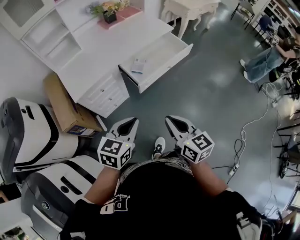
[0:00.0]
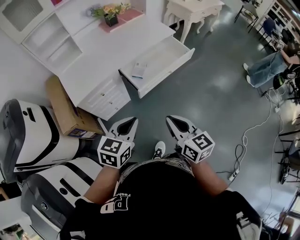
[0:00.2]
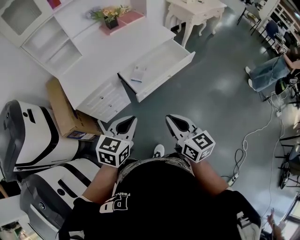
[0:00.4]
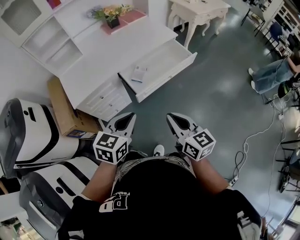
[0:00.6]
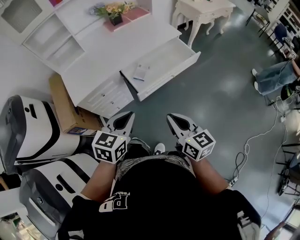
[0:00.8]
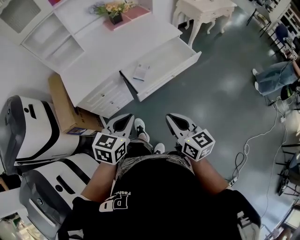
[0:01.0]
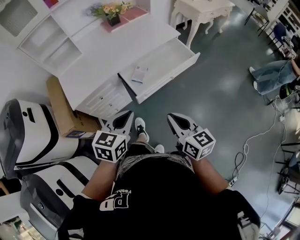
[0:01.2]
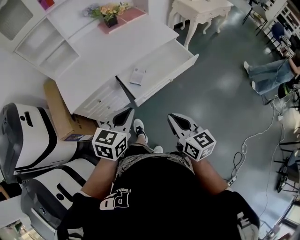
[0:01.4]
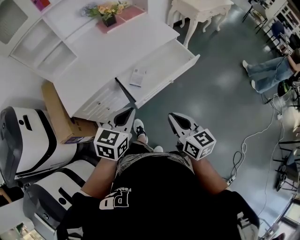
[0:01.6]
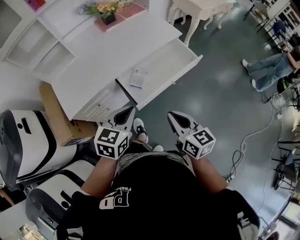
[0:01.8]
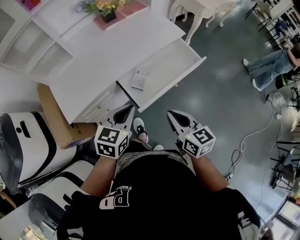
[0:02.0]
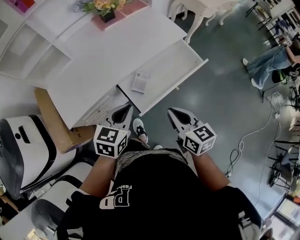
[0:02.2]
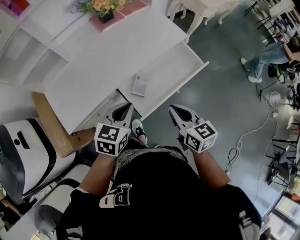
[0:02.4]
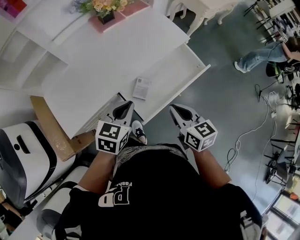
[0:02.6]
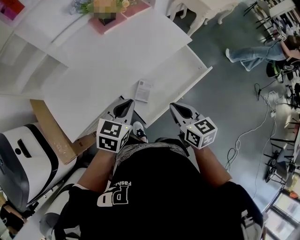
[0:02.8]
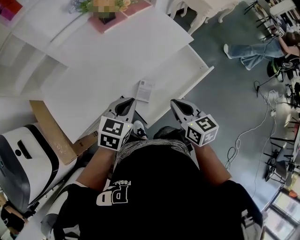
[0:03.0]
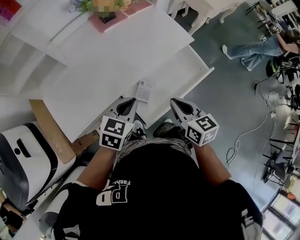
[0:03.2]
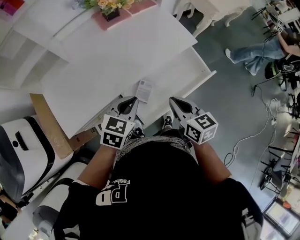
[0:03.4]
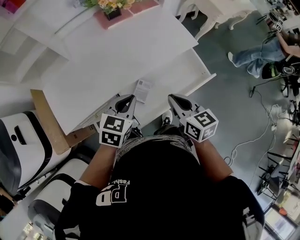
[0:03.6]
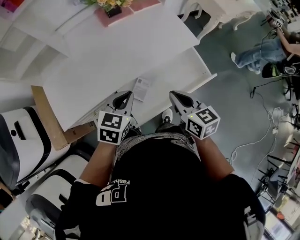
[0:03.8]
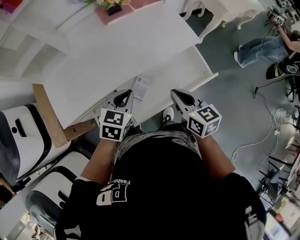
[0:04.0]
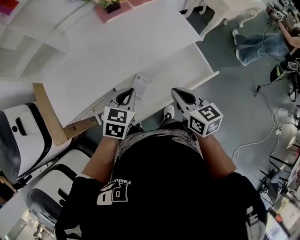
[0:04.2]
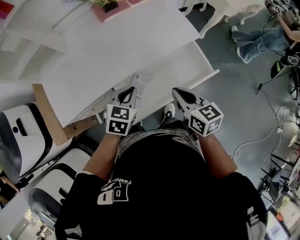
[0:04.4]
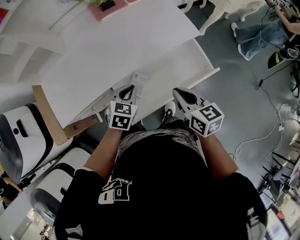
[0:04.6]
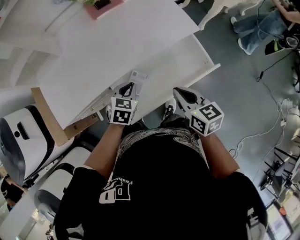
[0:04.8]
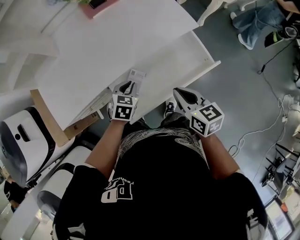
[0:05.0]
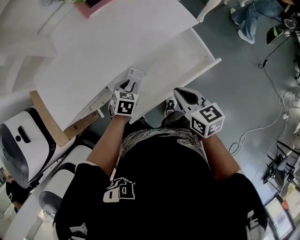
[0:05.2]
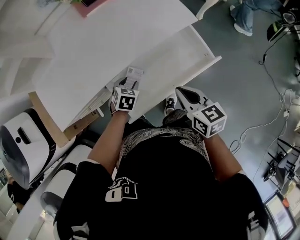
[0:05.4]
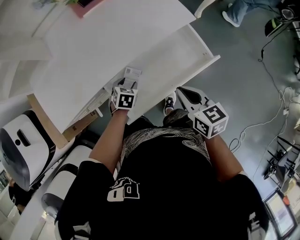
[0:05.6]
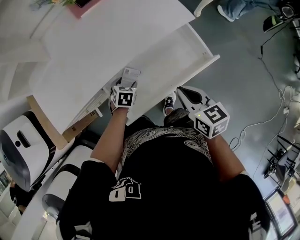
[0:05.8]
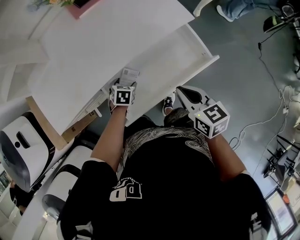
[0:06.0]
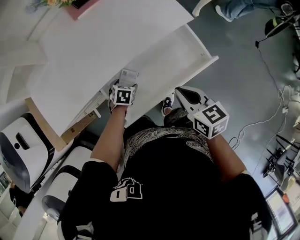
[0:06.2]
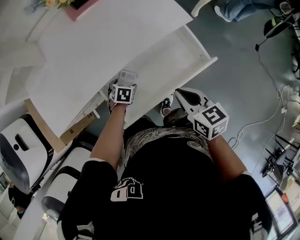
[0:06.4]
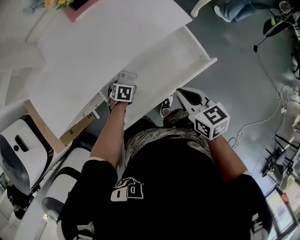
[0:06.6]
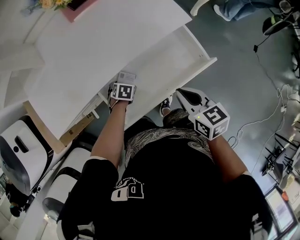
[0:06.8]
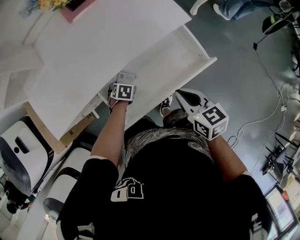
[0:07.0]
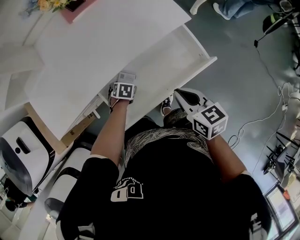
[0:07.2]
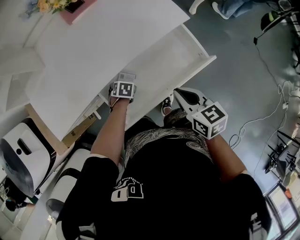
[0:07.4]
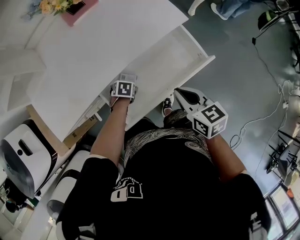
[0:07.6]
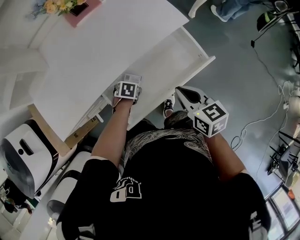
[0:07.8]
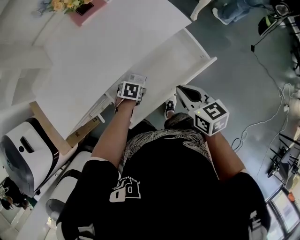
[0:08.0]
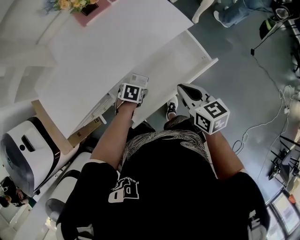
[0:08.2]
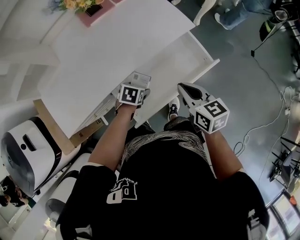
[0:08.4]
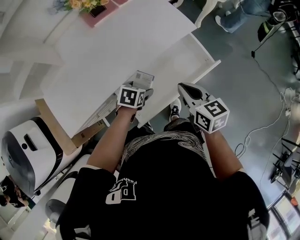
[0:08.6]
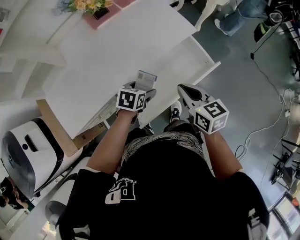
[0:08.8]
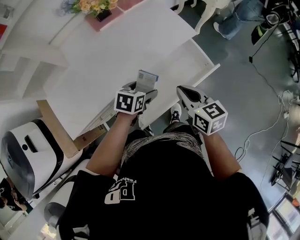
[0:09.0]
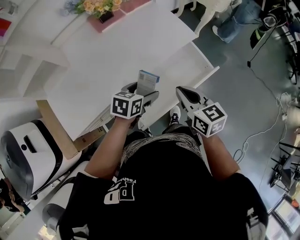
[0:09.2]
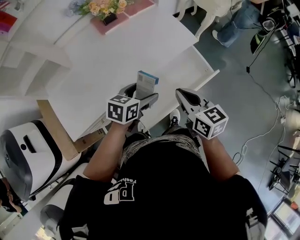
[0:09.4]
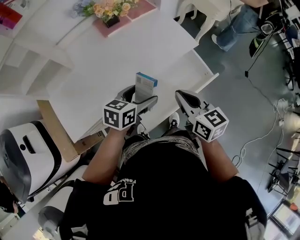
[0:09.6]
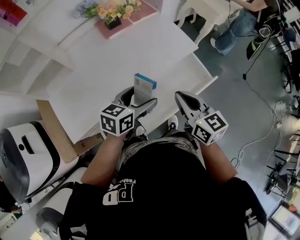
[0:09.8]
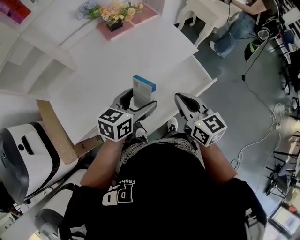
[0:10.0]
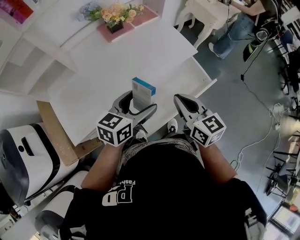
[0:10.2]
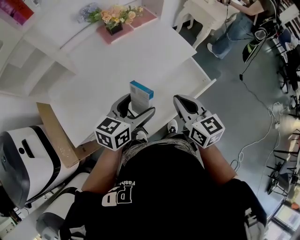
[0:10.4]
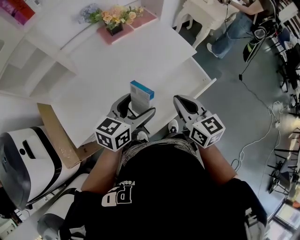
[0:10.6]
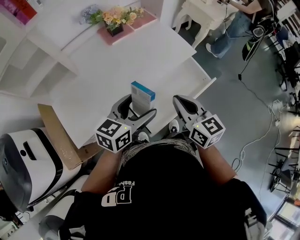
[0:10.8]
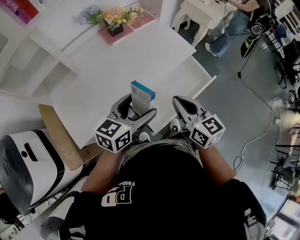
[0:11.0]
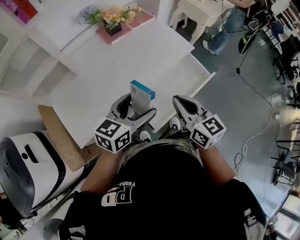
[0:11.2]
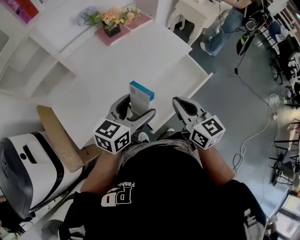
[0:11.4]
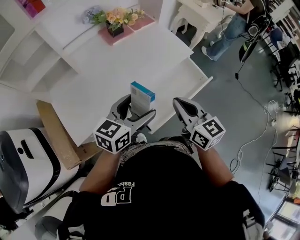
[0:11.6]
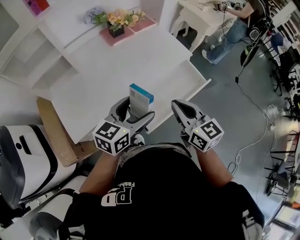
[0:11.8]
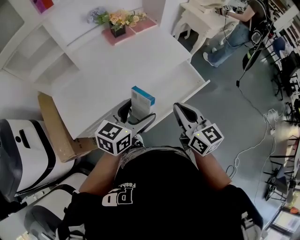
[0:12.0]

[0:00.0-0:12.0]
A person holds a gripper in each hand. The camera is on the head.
0:00.0 to 0:01.6: The right gripper goes approximately 20 cm forward and to the right. The left gripper goes approximately 20 cm forward.
0:01.6 to 0:03.0: The grippers both shift forward by about 25 cm.
0:03.0 to 0:04.4: The left gripper goes some 10 cm to the right and downward. The right gripper goes some 10 cm to the right and forward.
0:04.4 to 0:06.0: The right gripper travels to the right and downward by approximately 10 cm. The left gripper is displaced downward by about 25 cm, changes its angle by about 30 degrees, and opens its fingers.
0:06.0 to 0:07.6: The grippers stay close to where they were, moving slightly.
0:07.6 to 0:09.0: The left gripper heads upward, covering roughly 20 cm, and angles its fingers upward, by some 30 degrees, while the right gripper shifts by approximately 10 cm.
0:09.0 to 0:10.4: The right gripper is displaced upward and to the left by about 10 cm, while the left gripper heads upward, covering approximately 15 cm, and points its fingers roughly 30 degrees further upward.
0:10.4 to 0:12.0: Both grippers move backward, approximately 10 cm.

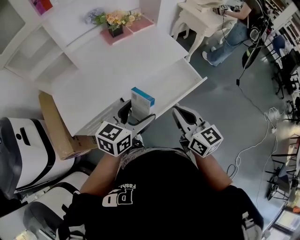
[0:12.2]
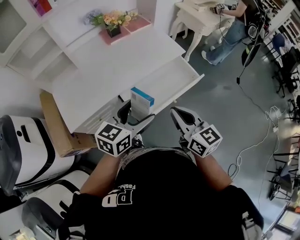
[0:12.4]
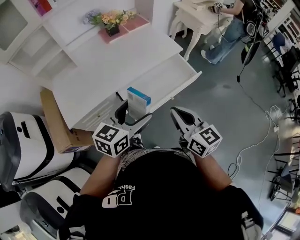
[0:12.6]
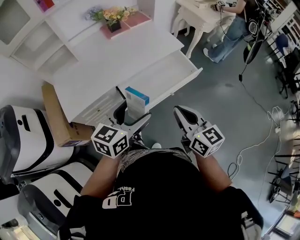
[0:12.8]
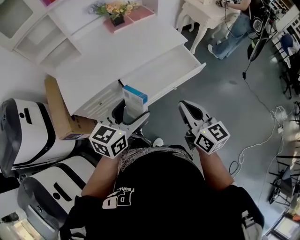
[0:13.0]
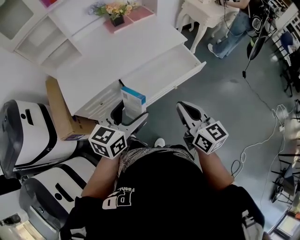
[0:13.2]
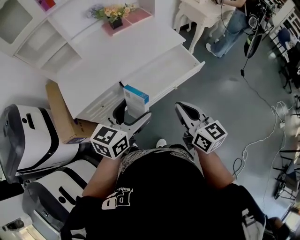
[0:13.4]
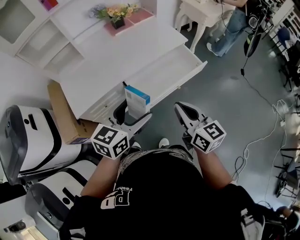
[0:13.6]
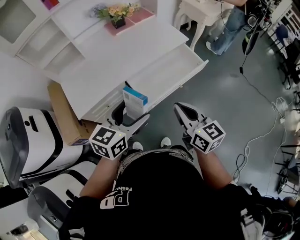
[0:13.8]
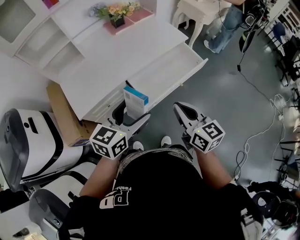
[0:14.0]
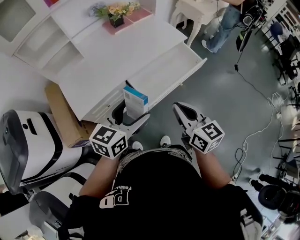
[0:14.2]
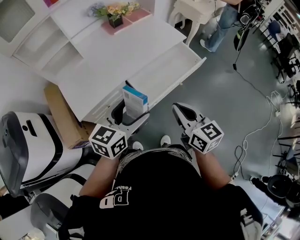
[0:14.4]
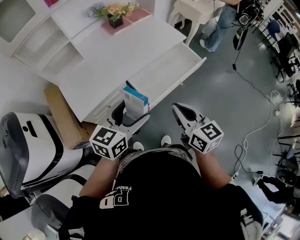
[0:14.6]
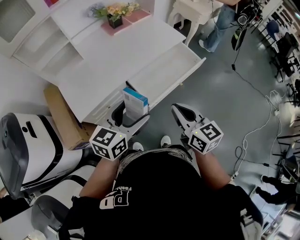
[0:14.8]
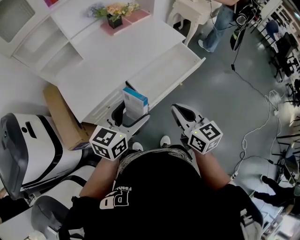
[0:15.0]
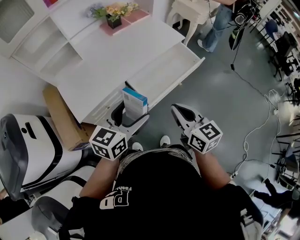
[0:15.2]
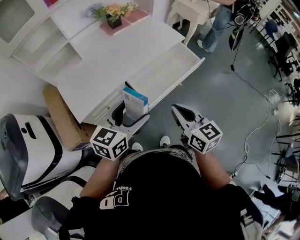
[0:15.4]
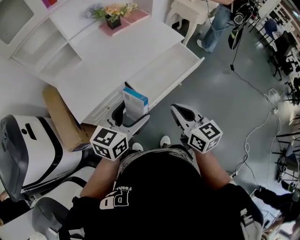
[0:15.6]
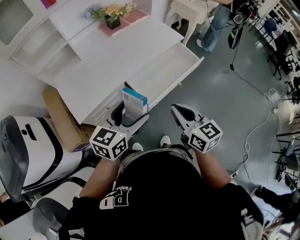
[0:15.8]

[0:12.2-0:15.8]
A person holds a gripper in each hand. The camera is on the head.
0:12.2 to 0:14.0: Both grippers travel together backward, roughly 10 cm.
0:14.0 to 0:15.8: There are only small adjustments of the grippers.

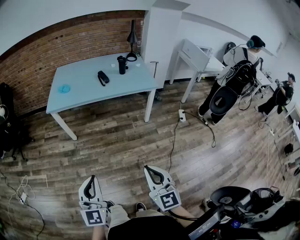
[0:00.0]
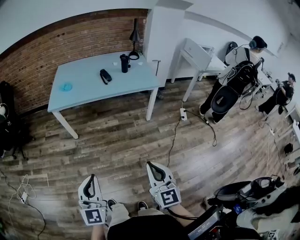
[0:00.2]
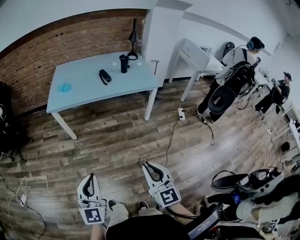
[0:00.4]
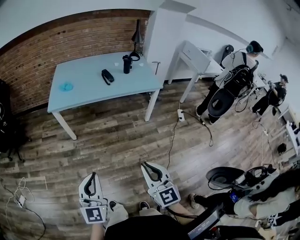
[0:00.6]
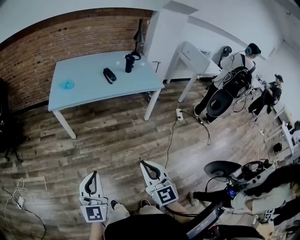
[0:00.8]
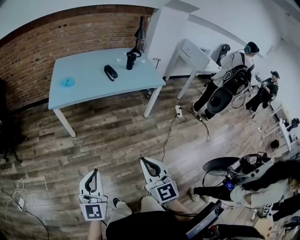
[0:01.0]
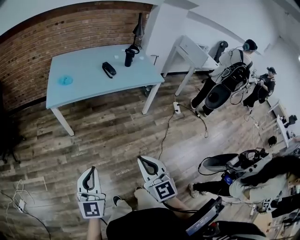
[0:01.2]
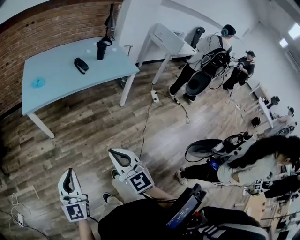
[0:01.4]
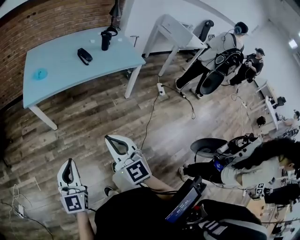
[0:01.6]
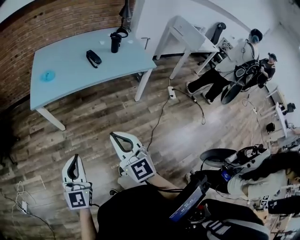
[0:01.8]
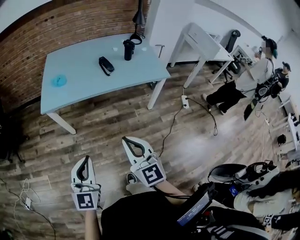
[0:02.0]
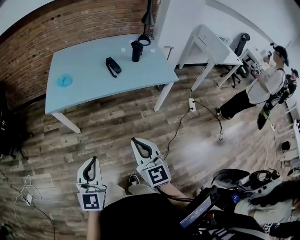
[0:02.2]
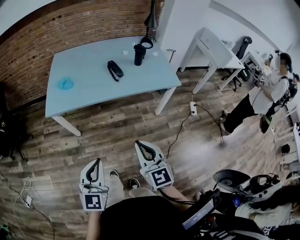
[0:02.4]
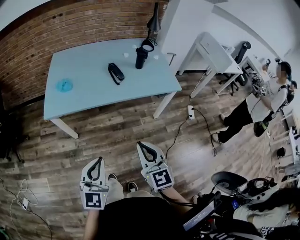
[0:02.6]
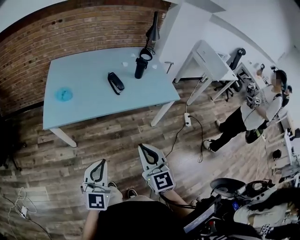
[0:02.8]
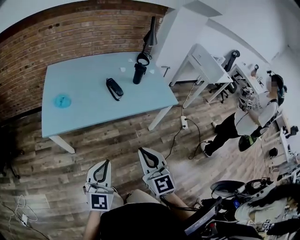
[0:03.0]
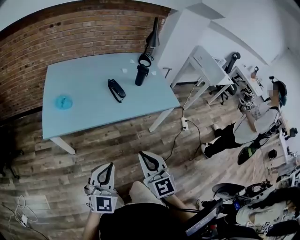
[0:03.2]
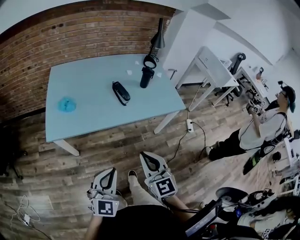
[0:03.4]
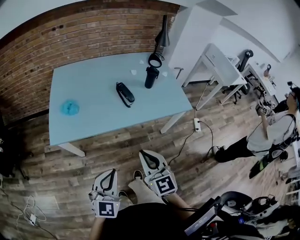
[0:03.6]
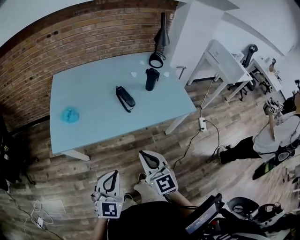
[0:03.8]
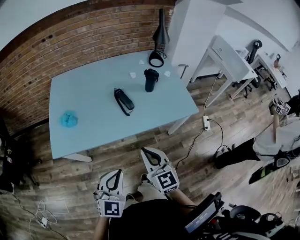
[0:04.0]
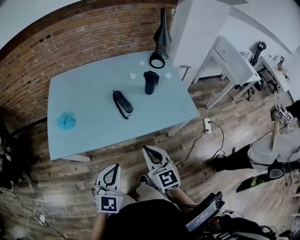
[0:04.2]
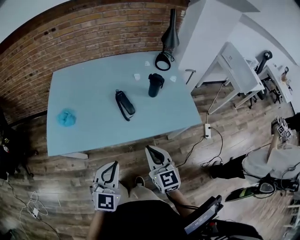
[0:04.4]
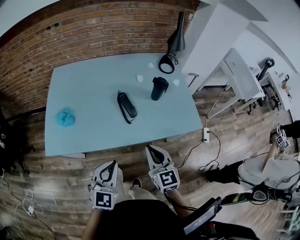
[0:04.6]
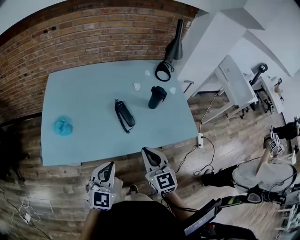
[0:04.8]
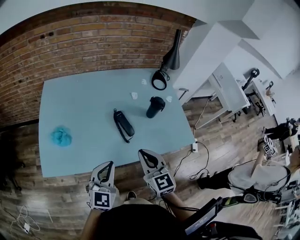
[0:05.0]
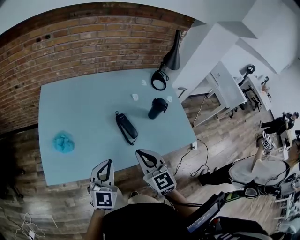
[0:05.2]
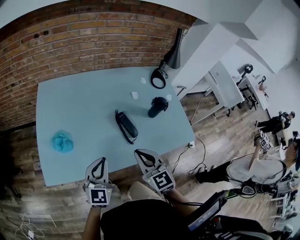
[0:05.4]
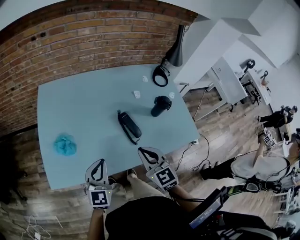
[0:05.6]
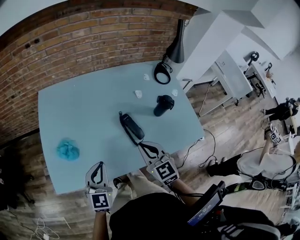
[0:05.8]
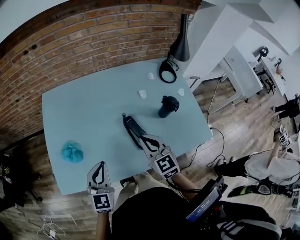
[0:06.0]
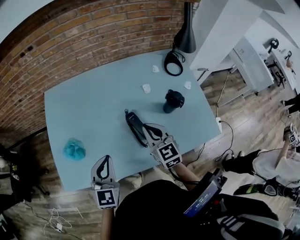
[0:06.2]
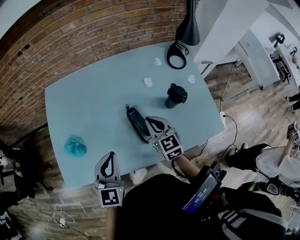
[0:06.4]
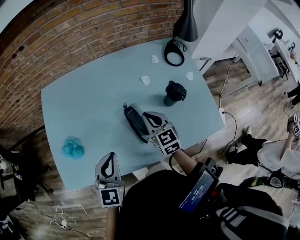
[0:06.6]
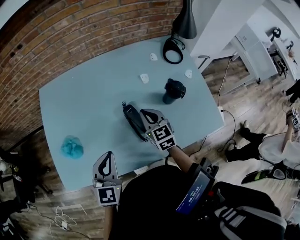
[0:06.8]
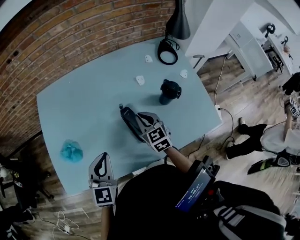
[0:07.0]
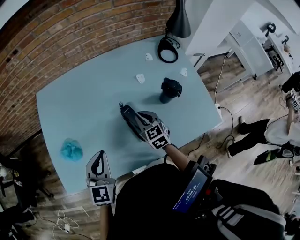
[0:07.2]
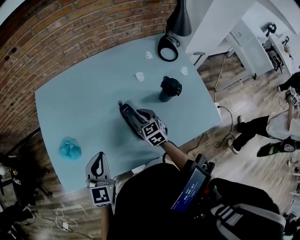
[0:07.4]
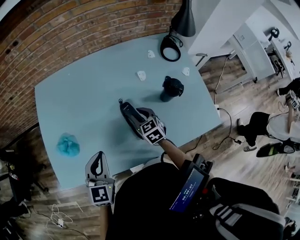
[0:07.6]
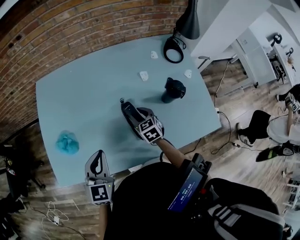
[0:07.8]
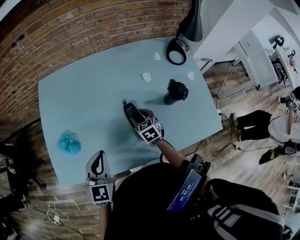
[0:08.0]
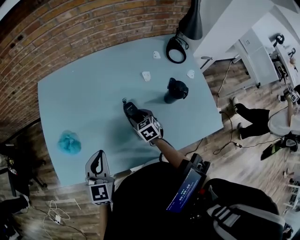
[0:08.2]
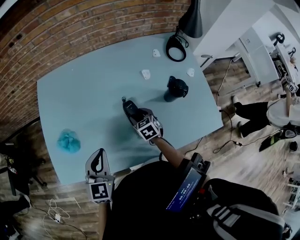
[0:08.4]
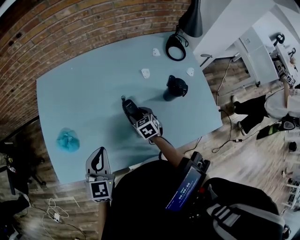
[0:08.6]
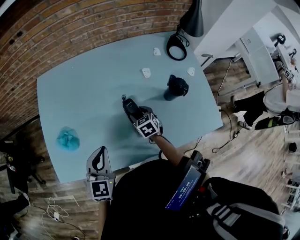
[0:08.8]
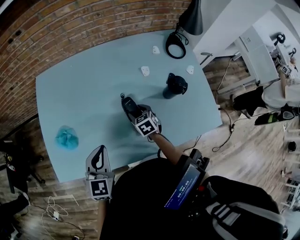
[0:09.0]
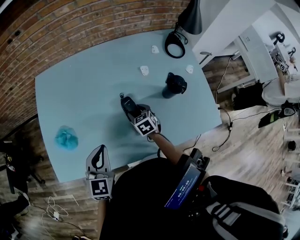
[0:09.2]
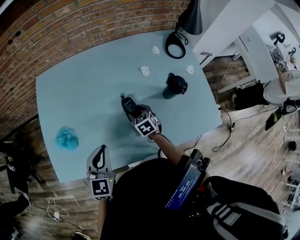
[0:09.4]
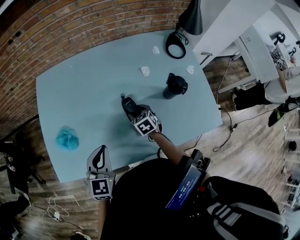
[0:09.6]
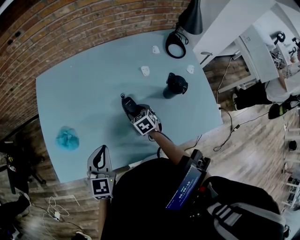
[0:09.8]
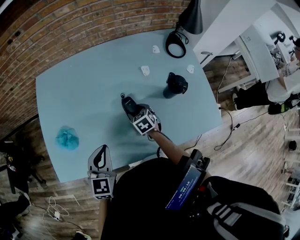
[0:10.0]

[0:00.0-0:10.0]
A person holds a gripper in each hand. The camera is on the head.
0:00.0 to 0:01.4: The two grippers go roughly 25 cm to the left and forward.
0:01.4 to 0:02.8: Both grippers move forward, about 25 cm.
0:02.8 to 0:04.2: The grippers both shift forward by about 25 cm.
0:04.2 to 0:05.8: The two grippers go about 30 cm forward and to the left.
0:05.8 to 0:07.2: The right gripper shifts about 20 cm downward, forward and to the right, while the left gripper goes approximately 10 cm forward and to the right.
0:07.2 to 0:08.6: The right gripper travels downward by roughly 10 cm, and opens.
0:08.6 to 0:10.0: There are only small adjustments of the grippers.
